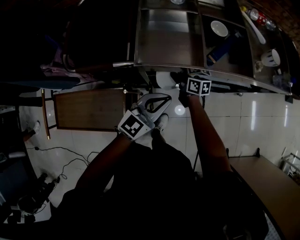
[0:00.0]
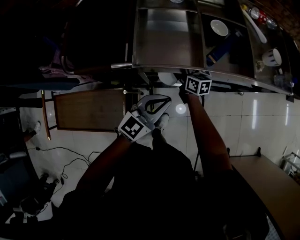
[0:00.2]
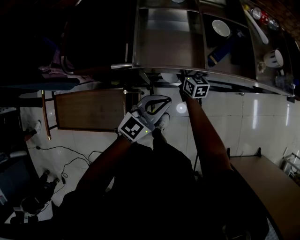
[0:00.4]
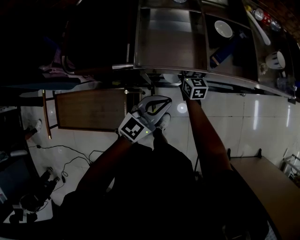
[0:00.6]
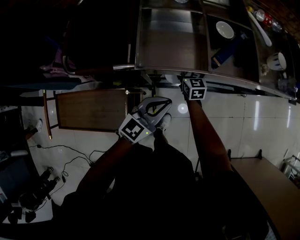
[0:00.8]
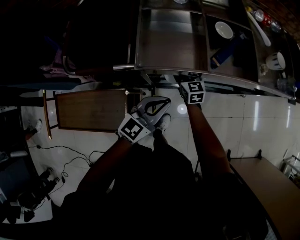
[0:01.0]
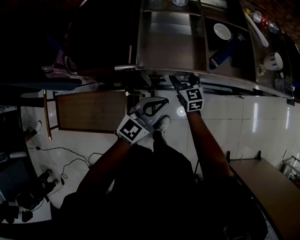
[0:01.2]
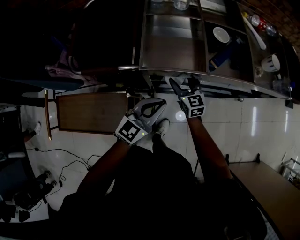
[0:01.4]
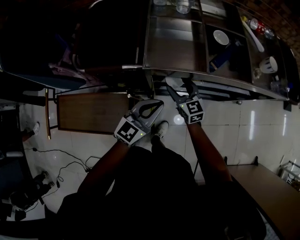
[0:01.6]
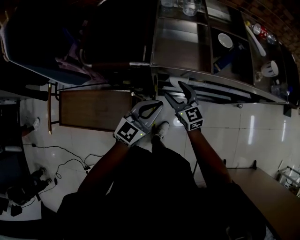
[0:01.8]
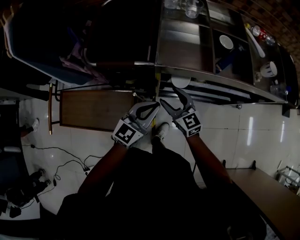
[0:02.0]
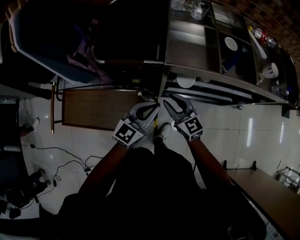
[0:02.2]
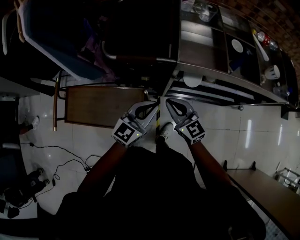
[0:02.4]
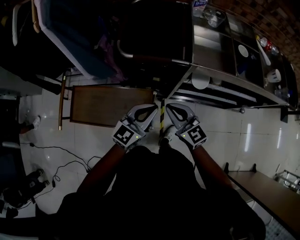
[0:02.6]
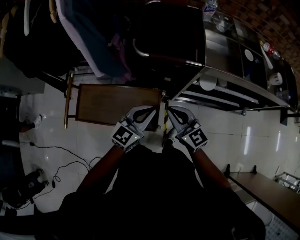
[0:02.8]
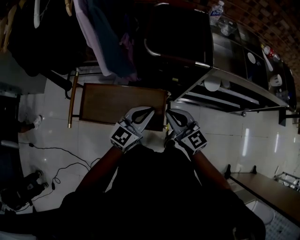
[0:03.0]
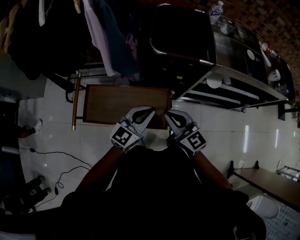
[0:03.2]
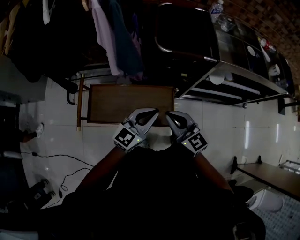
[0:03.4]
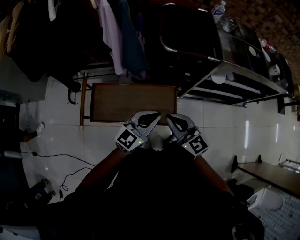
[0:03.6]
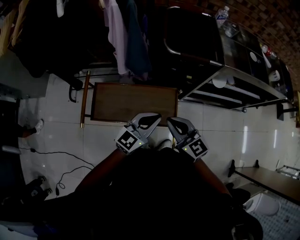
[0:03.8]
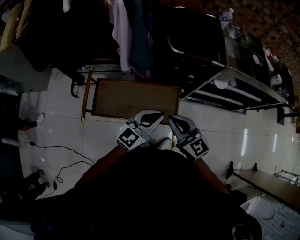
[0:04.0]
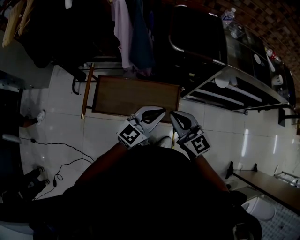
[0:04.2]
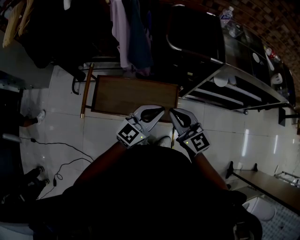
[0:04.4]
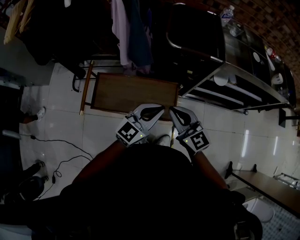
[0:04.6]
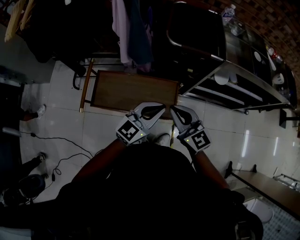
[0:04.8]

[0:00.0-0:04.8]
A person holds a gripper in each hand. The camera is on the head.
0:00.0 to 0:01.6: The right gripper heads upward, covering some 10 cm, rolls counterclockwise, seen from behind, by about 40 degrees, and opens.
0:01.6 to 0:03.2: The right gripper moves to the left, backward and upward, approximately 40 cm, and closes; the left gripper shifts some 35 cm to the left.
0:03.2 to 0:04.8: The left gripper is displaced backward by roughly 5 cm. Meanwhile the right gripper changes place by some 5 cm.

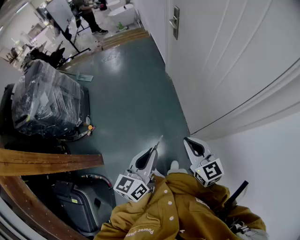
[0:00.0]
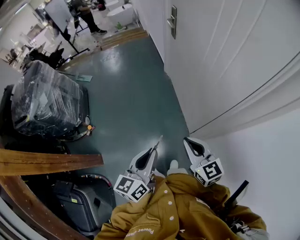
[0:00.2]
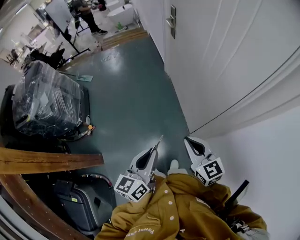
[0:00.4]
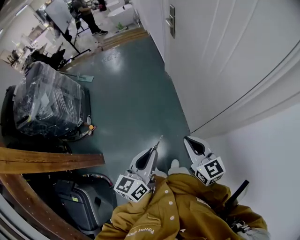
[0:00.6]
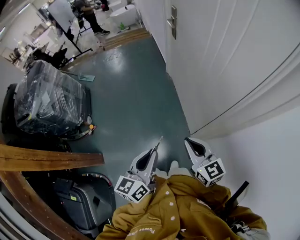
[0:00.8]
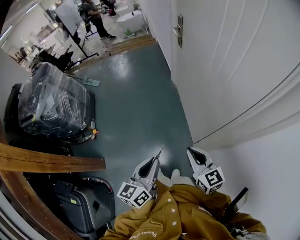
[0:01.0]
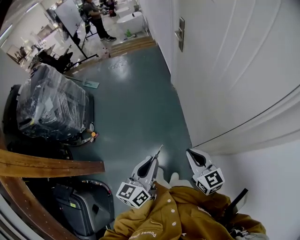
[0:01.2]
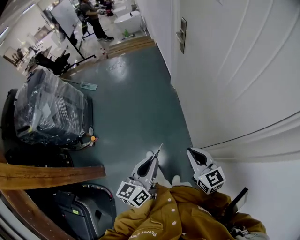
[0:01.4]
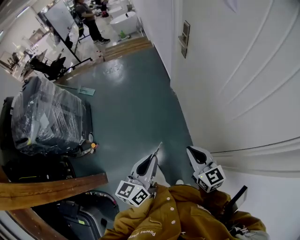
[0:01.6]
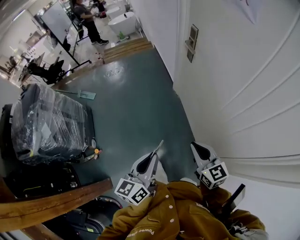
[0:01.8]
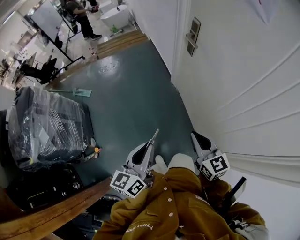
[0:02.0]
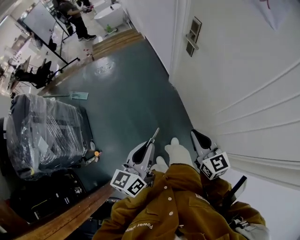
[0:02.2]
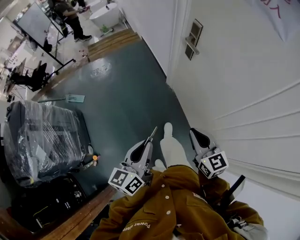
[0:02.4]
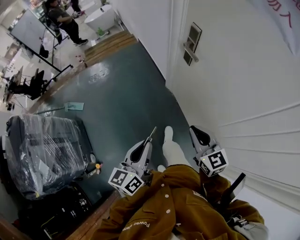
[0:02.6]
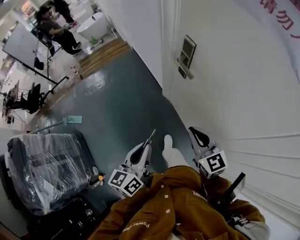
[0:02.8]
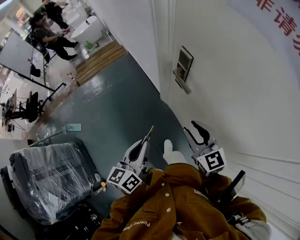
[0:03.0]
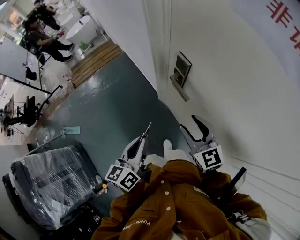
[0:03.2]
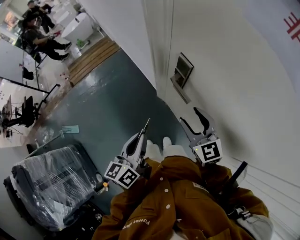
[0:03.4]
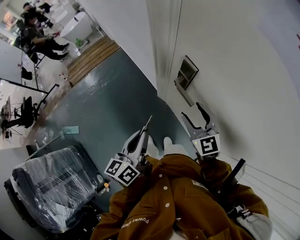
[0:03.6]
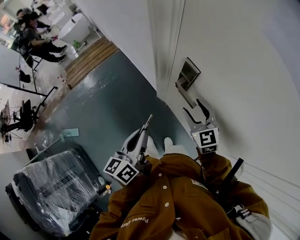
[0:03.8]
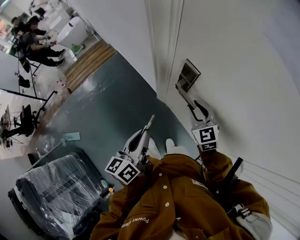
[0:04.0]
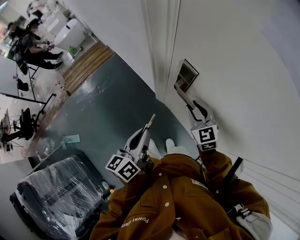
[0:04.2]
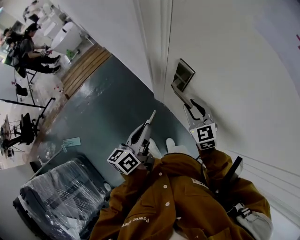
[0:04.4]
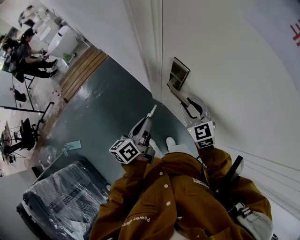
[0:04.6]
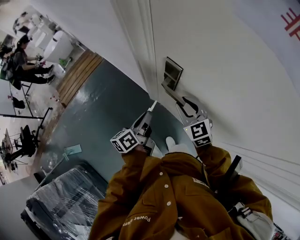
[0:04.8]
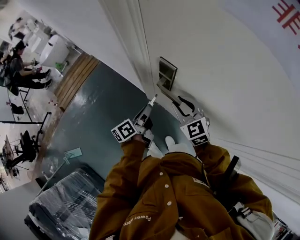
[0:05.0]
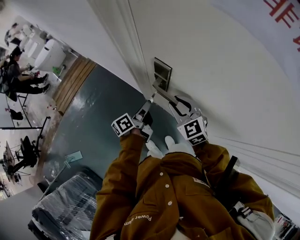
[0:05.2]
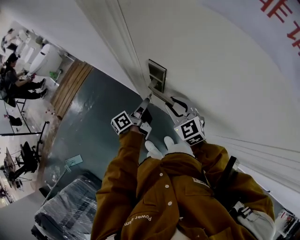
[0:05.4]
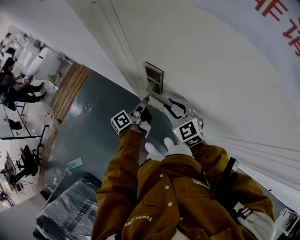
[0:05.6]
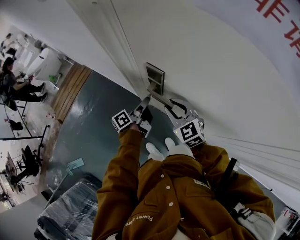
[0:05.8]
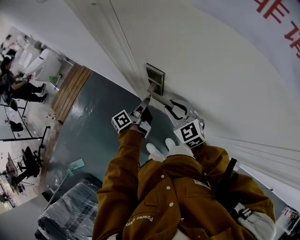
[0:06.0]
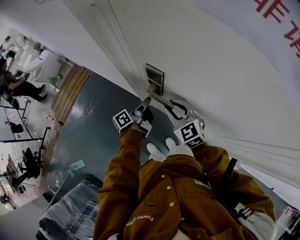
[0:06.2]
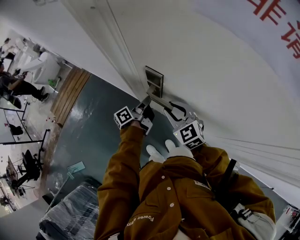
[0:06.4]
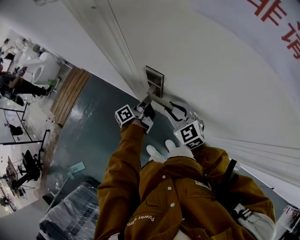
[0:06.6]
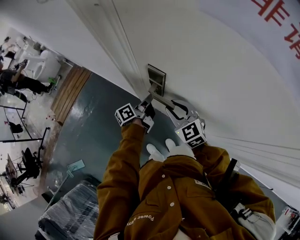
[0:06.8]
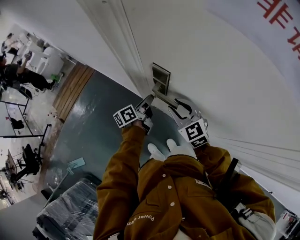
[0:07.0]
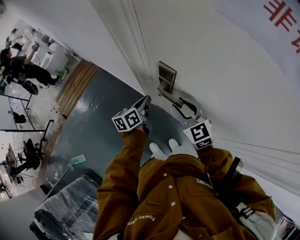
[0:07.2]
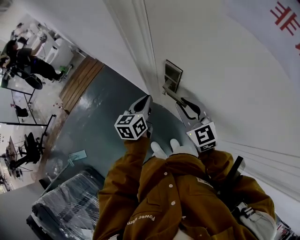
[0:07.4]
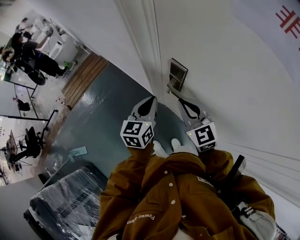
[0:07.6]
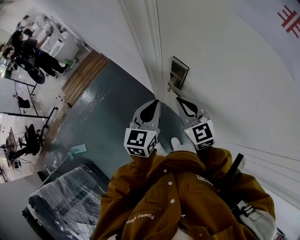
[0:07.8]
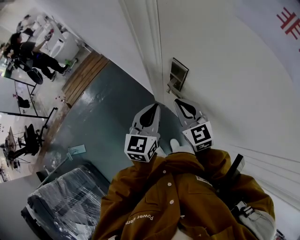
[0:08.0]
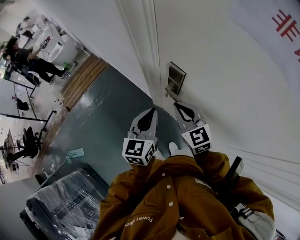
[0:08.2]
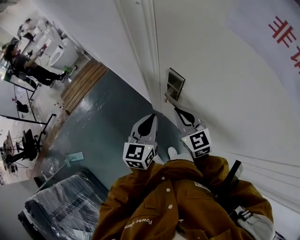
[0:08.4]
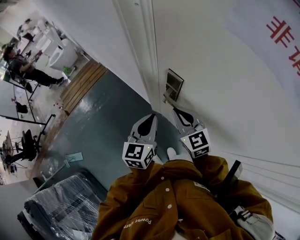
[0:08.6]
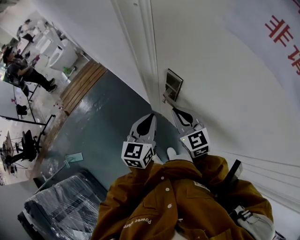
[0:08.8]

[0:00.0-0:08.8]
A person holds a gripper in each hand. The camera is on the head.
0:00.0 to 0:01.4: The grippers both shift forward by approximately 10 cm.
0:01.4 to 0:03.0: The pair of grippers is taken forward, about 60 cm. The right gripper changes its angle by some 20 degrees, and opens.
0:03.0 to 0:04.4: Both grippers move forward, about 20 cm. The right gripper changes its angle by approximately 20 degrees, and opens, then closes once more.
0:04.4 to 0:05.8: The left gripper heads forward, downward and to the right, covering approximately 20 cm, and rotates roughly 40 degrees.
0:05.8 to 0:07.4: Both grippers move upward, roughly 5 cm. The left gripper rotates around the line of its fingers by some 50 degrees, clockwise from behind.
0:07.4 to 0:08.8: The left gripper is displaced backward and upward by about 10 cm.

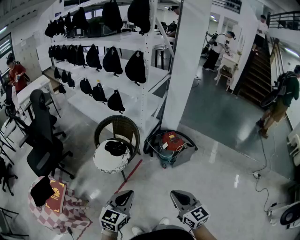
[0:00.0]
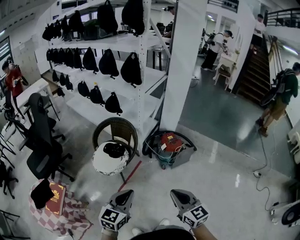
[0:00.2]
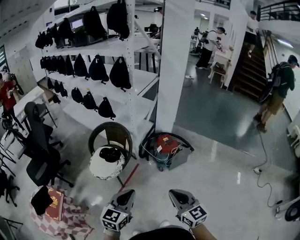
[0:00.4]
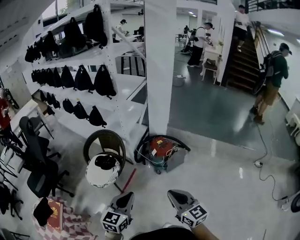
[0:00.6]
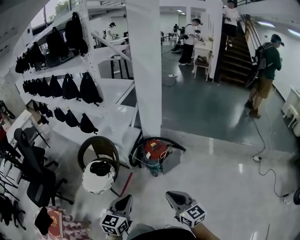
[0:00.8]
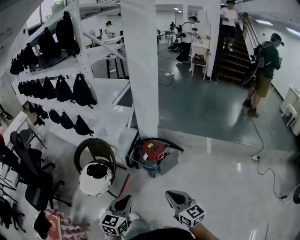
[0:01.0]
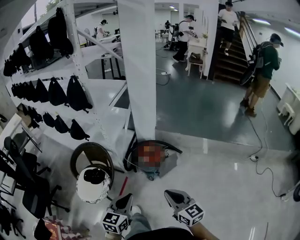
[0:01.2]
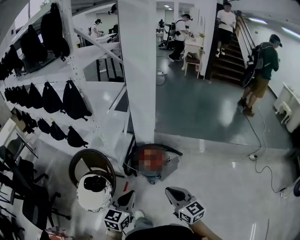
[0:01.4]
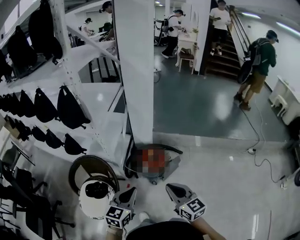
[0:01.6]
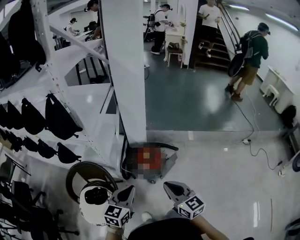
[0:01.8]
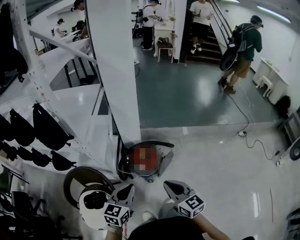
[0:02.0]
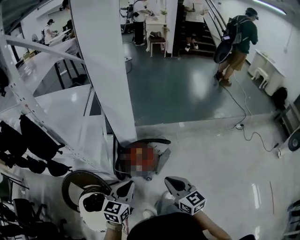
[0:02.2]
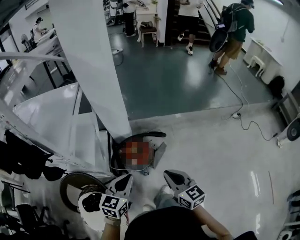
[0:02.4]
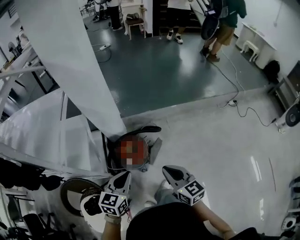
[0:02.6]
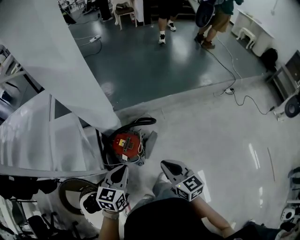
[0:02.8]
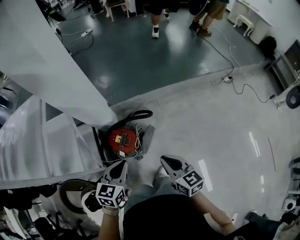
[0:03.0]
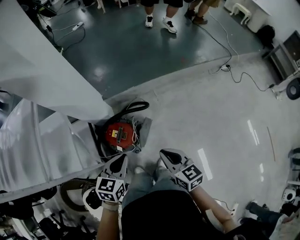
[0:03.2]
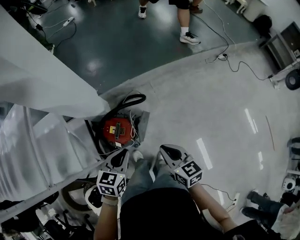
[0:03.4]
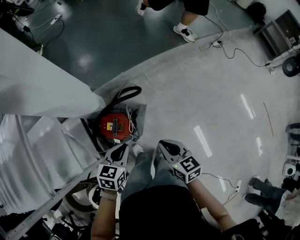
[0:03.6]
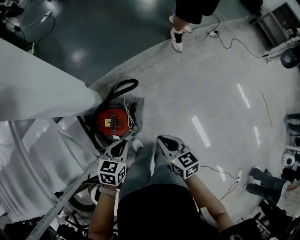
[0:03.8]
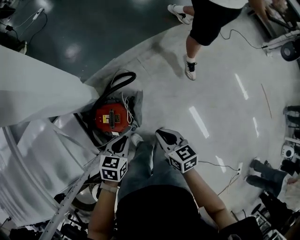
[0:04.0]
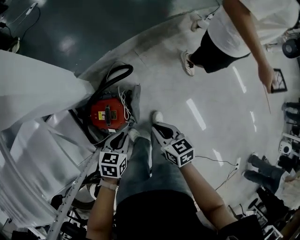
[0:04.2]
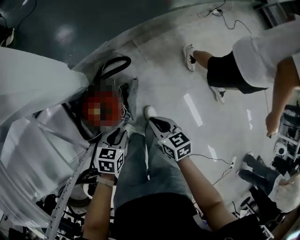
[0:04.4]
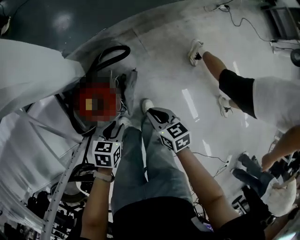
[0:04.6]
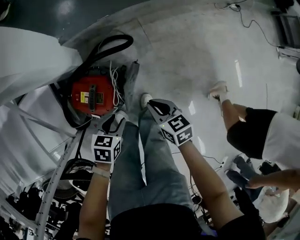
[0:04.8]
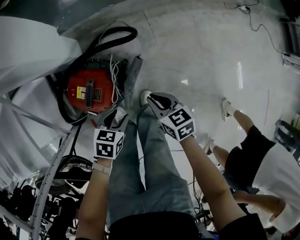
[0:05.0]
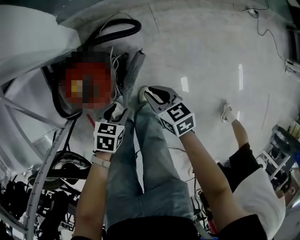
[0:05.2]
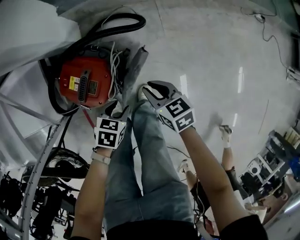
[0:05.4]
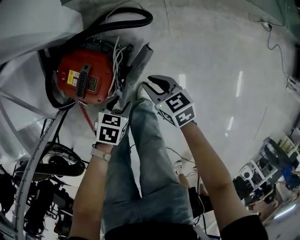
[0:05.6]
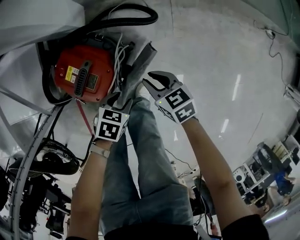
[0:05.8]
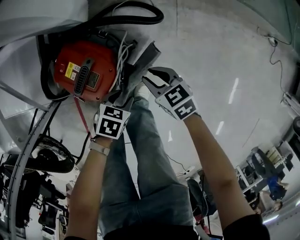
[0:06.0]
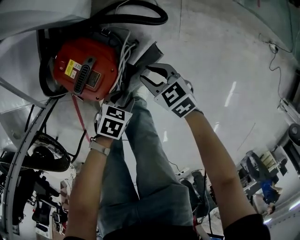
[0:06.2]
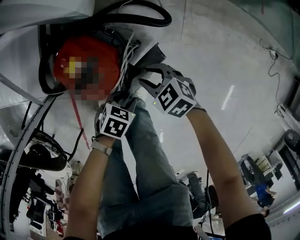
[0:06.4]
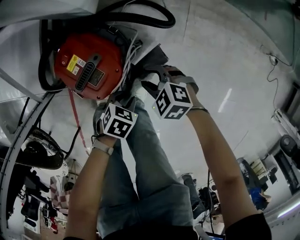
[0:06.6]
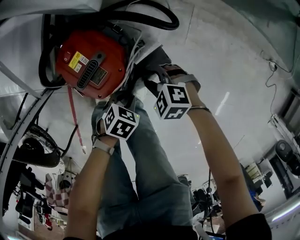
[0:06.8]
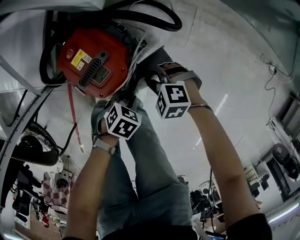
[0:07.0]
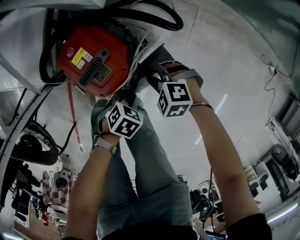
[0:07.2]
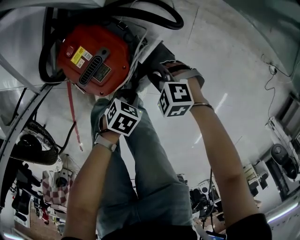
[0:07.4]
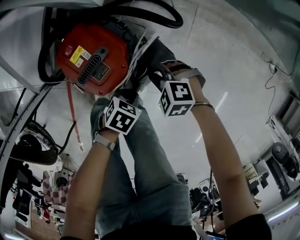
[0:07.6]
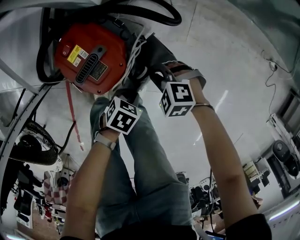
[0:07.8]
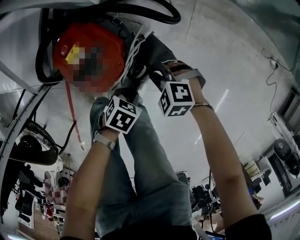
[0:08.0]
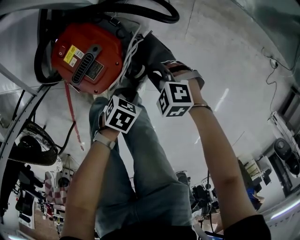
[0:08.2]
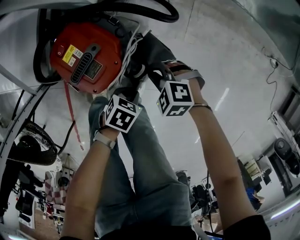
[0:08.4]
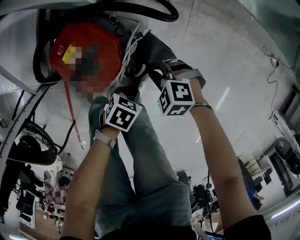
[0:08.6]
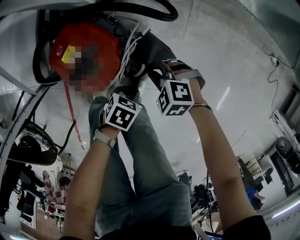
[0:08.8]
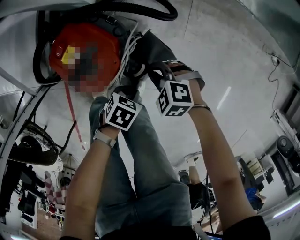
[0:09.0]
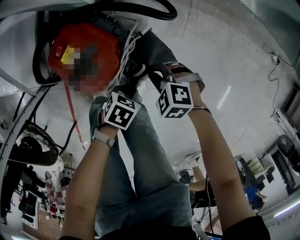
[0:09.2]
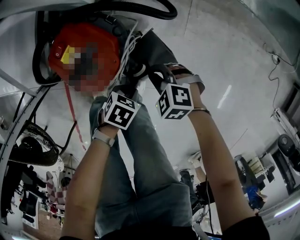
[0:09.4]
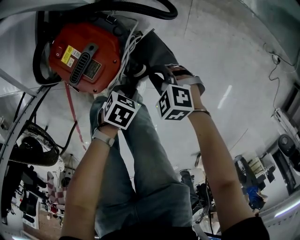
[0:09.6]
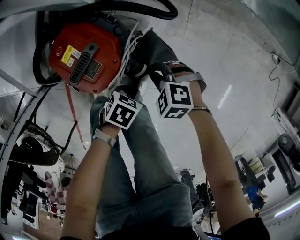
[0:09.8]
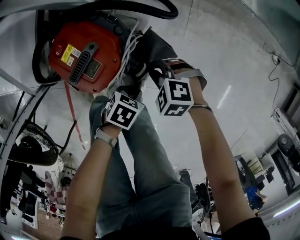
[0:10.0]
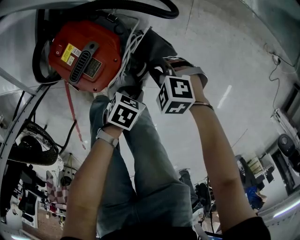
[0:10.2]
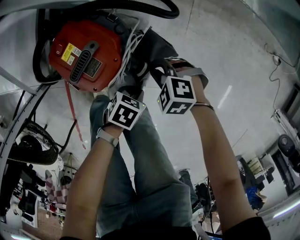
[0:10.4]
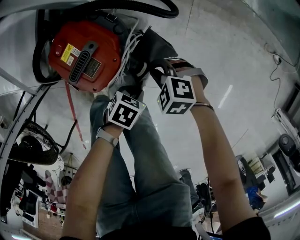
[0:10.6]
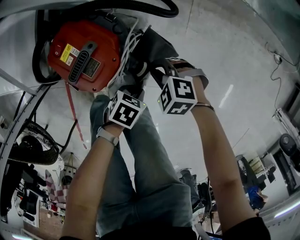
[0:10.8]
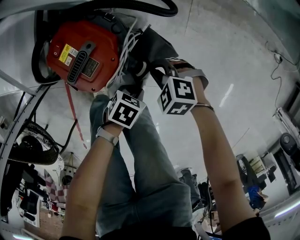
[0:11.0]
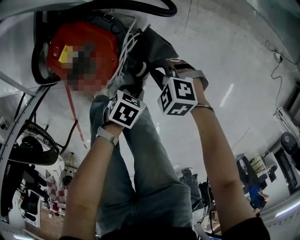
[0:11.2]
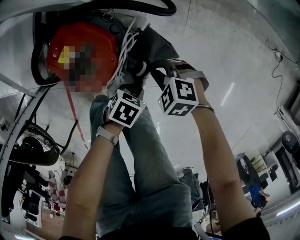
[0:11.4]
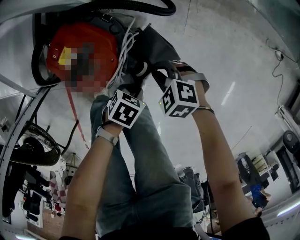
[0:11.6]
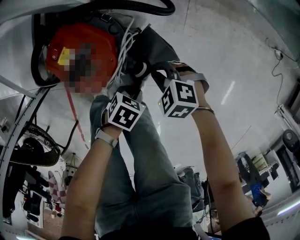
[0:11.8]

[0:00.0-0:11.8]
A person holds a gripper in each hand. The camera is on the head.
0:00.0 to 0:01.4: The two grippers go about 30 cm forward and to the right.
0:01.4 to 0:03.0: The left gripper moves about 35 cm, and turns by roughly 30 degrees. Meanwhile the right gripper changes place by about 30 cm, and changes its angle by about 30 degrees.
0:03.0 to 0:04.4: The two grippers go approximately 30 cm downward. The left gripper turns by approximately 30 degrees, and opens up; the right gripper rotates some 30 degrees.
0:04.4 to 0:06.0: The grippers both shift downward by roughly 30 cm. The right gripper rotates about 50 degrees, and opens its fingers.
0:06.0 to 0:07.4: The right gripper shifts by about 5 cm, and rolls counterclockwise, seen from behind, by about 60 degrees; the left gripper closes.
0:07.4 to 0:10.4: The grippers make only small movements.
0:10.4 to 0:11.8: The grippers stay close to where they were, moving slightly.
